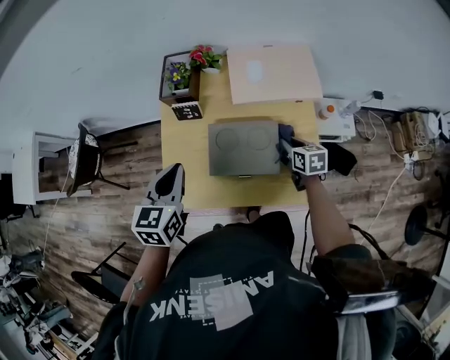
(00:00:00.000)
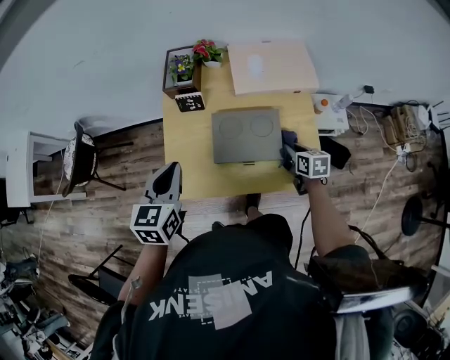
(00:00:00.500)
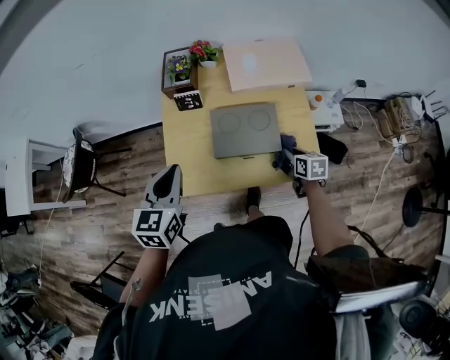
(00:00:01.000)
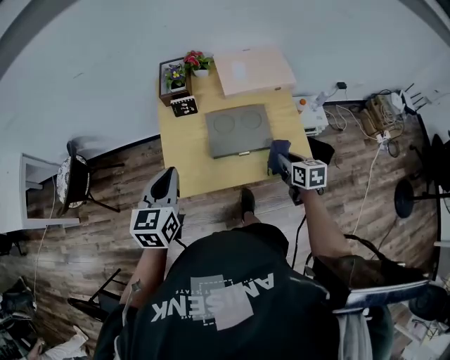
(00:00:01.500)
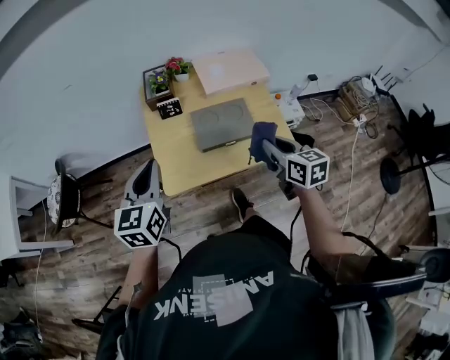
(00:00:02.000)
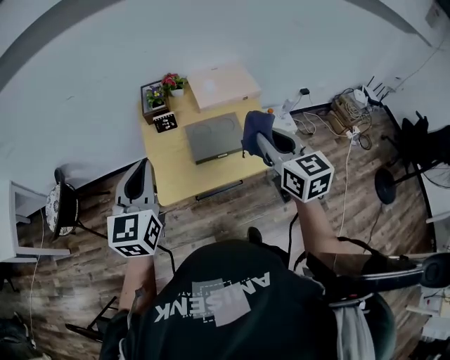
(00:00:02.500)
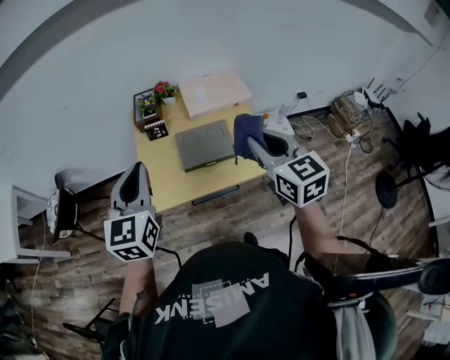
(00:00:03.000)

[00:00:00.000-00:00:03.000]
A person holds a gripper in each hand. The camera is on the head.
00:00:00.000 to 00:00:01.500: The left gripper goes some 10 cm backward and to the left, while the right gripper travels backward by some 15 cm.
00:00:01.500 to 00:00:03.000: The right gripper goes some 30 cm upward, and turns by about 30 degrees. Meanwhile the left gripper shifts some 15 cm upward.

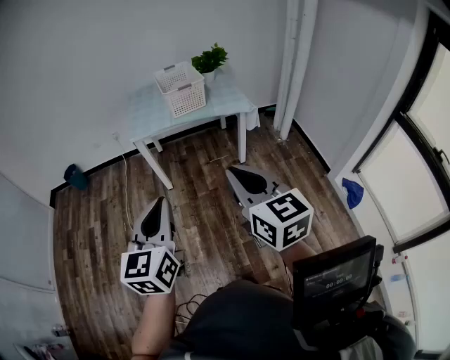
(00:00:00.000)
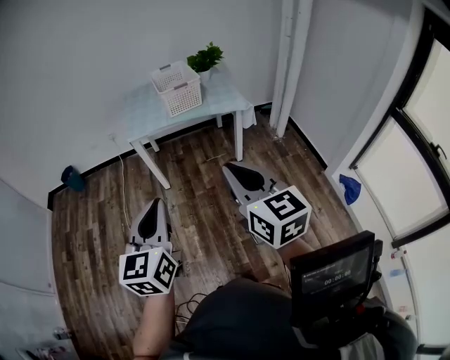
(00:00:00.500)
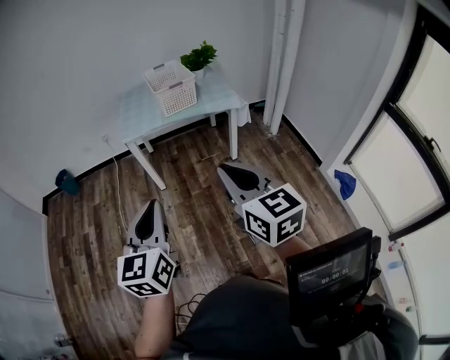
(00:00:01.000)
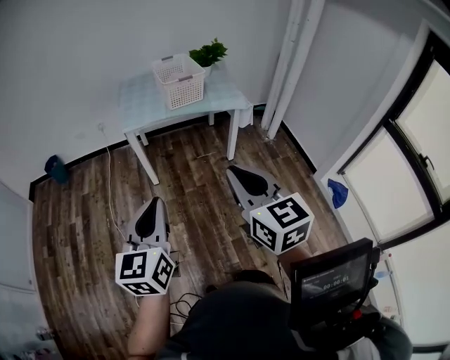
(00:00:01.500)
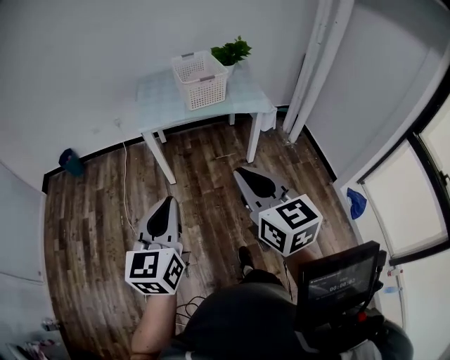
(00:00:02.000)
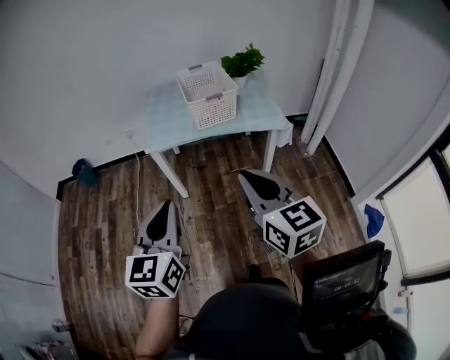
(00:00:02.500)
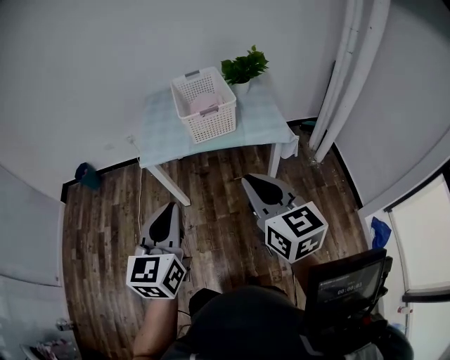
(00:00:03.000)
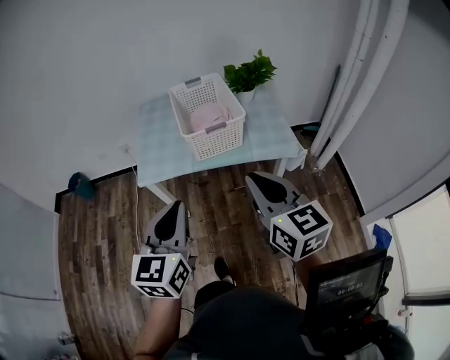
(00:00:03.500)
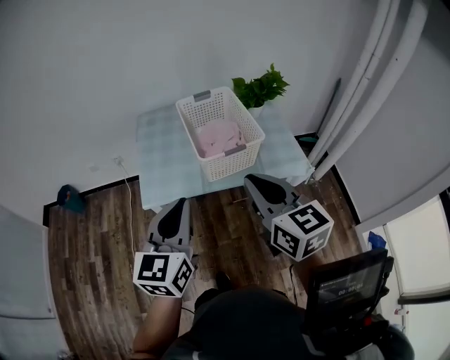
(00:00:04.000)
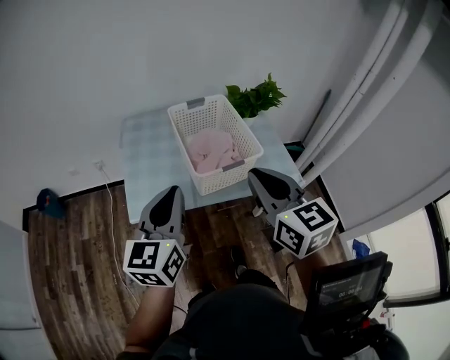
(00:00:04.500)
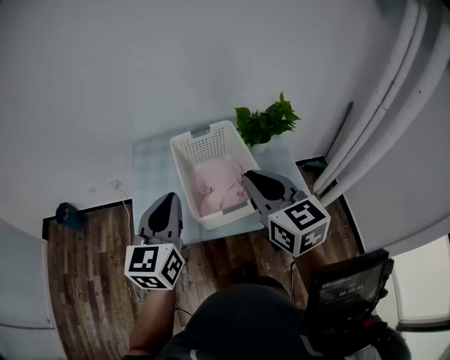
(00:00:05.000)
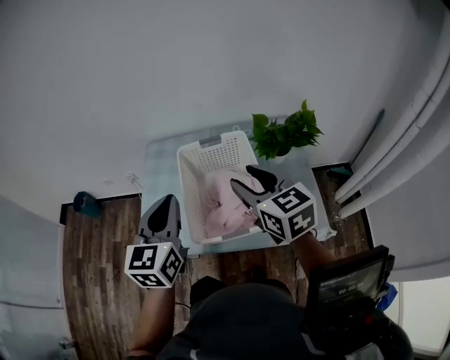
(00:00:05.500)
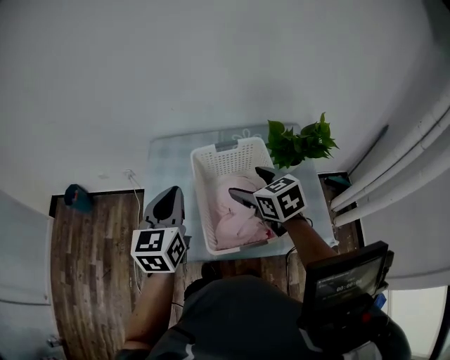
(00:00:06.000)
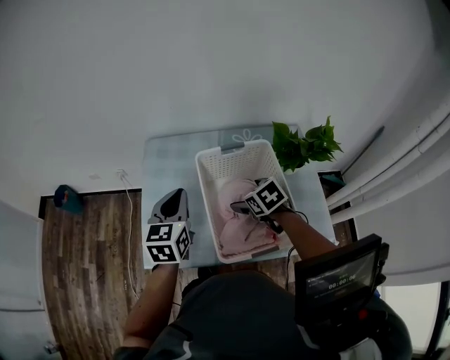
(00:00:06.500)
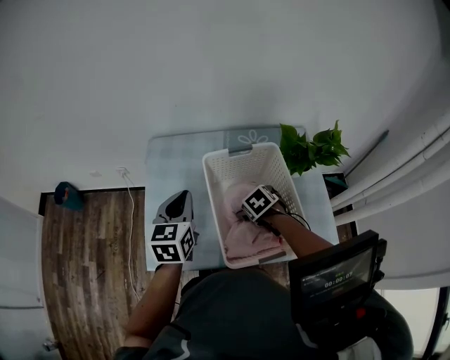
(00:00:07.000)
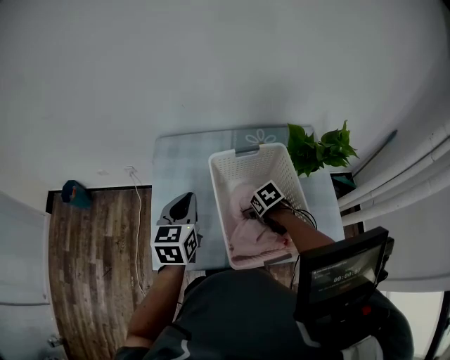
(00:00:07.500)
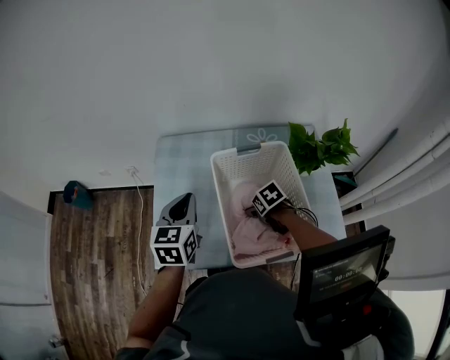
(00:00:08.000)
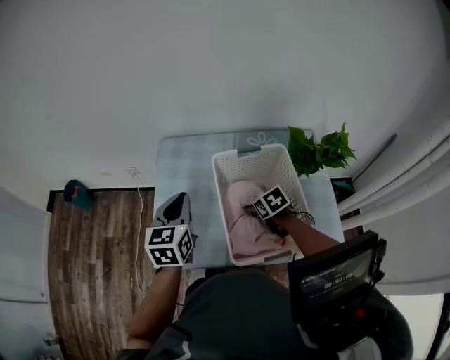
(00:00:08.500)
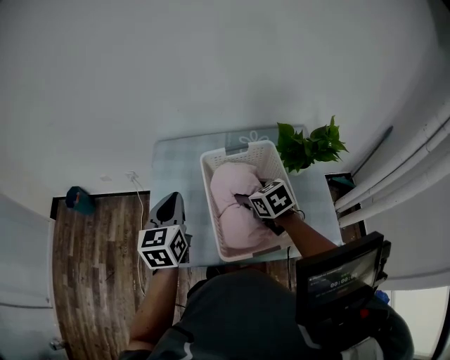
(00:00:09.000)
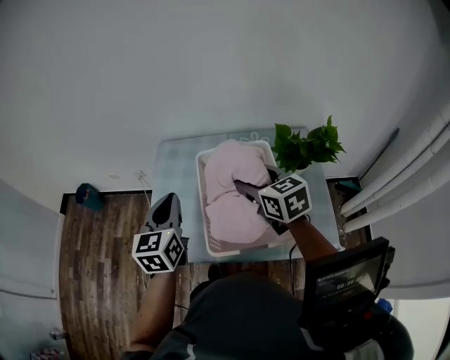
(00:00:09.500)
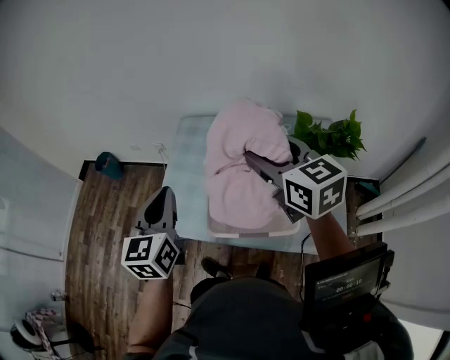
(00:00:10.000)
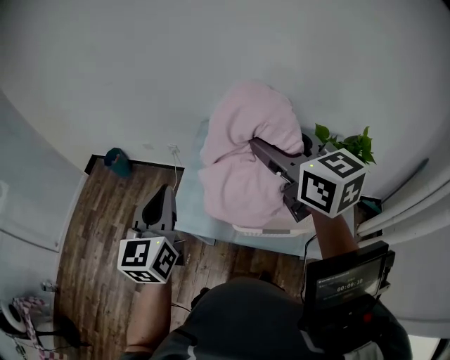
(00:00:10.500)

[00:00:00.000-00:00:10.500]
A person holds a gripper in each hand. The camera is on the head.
00:00:00.000 to 00:00:02.000: The two grippers go some 10 cm to the left and forward.
00:00:02.000 to 00:00:04.000: Both grippers are carried forward, about 50 cm.
00:00:04.000 to 00:00:06.500: The right gripper travels forward and downward by some 50 cm, points its fingers some 50 degrees further downward, and opens its fingers; the left gripper shifts approximately 40 cm forward.
00:00:06.500 to 00:00:08.500: The right gripper travels downward by approximately 5 cm, and closes.
00:00:08.500 to 00:00:10.500: The right gripper is displaced upward by some 40 cm, and points its fingers about 60 degrees further upward. Meanwhile the left gripper is displaced backward, upward and to the left by about 25 cm, and rotates approximately 20 degrees.

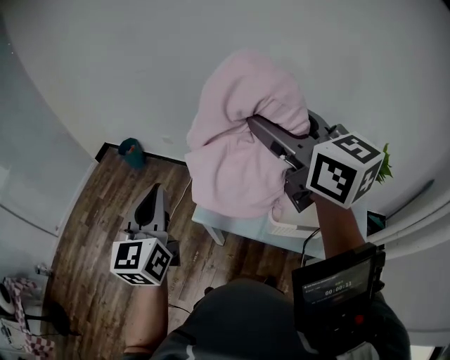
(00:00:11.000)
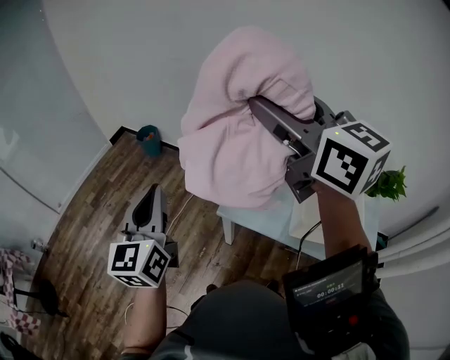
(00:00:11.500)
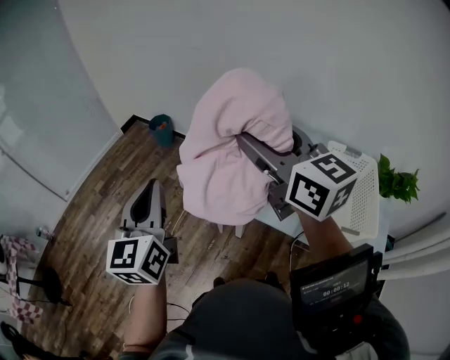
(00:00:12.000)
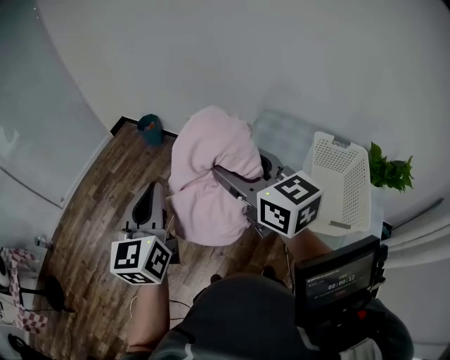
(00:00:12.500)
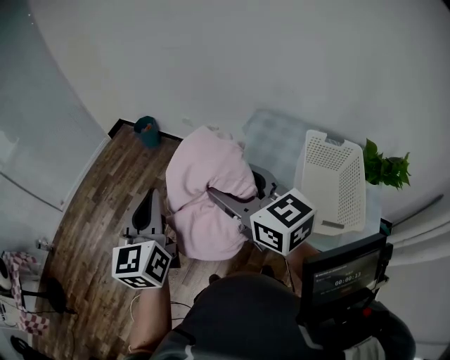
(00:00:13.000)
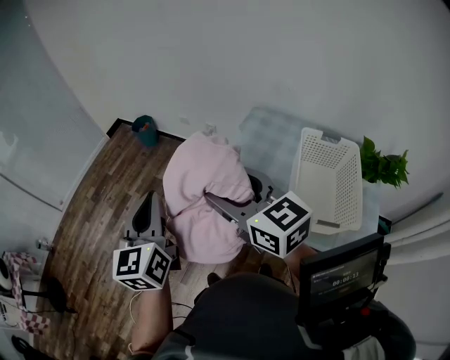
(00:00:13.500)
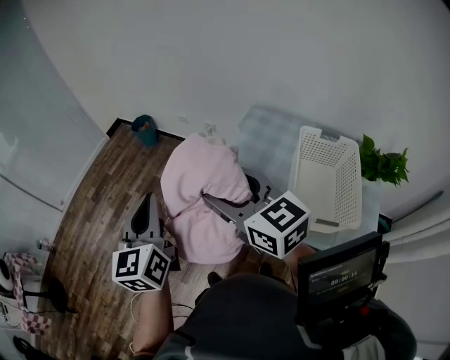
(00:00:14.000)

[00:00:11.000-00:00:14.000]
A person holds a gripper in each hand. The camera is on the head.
00:00:11.000 to 00:00:12.500: The right gripper goes approximately 25 cm to the left and downward. Meanwhile the left gripper travels to the left by approximately 15 cm.
00:00:12.500 to 00:00:14.000: The left gripper moves some 5 cm. The right gripper shifts by about 5 cm.

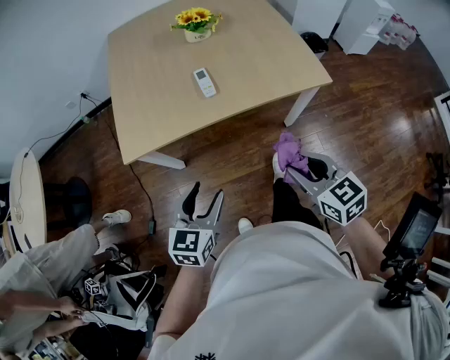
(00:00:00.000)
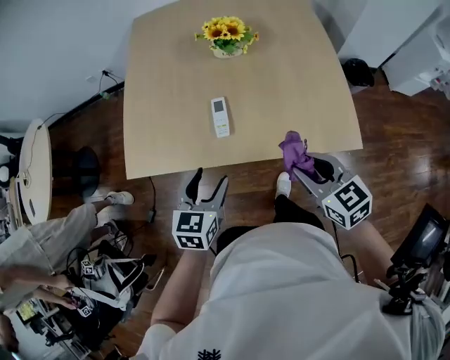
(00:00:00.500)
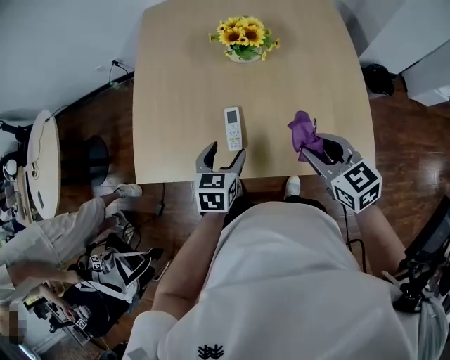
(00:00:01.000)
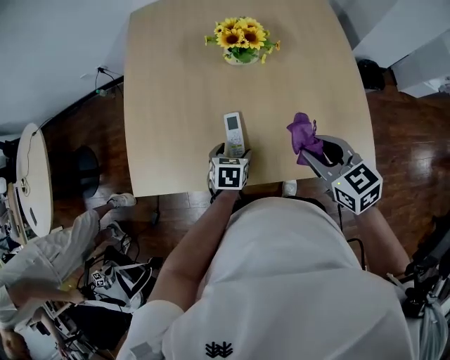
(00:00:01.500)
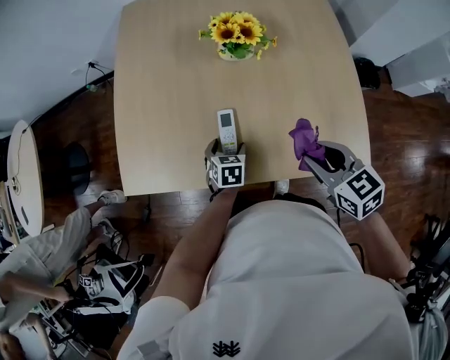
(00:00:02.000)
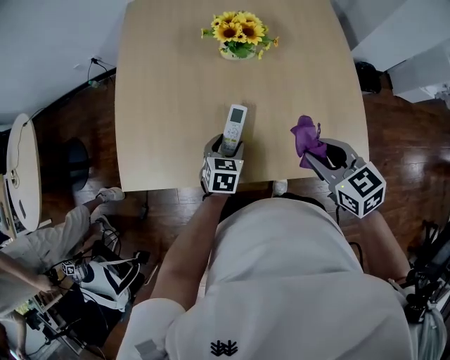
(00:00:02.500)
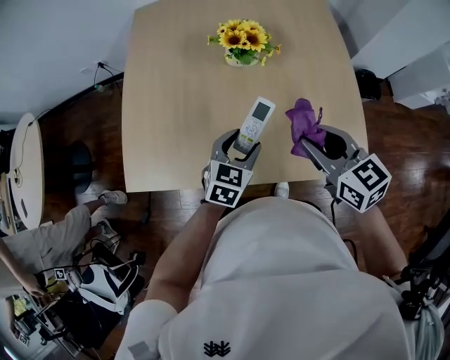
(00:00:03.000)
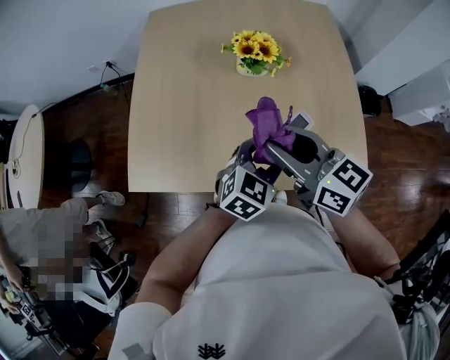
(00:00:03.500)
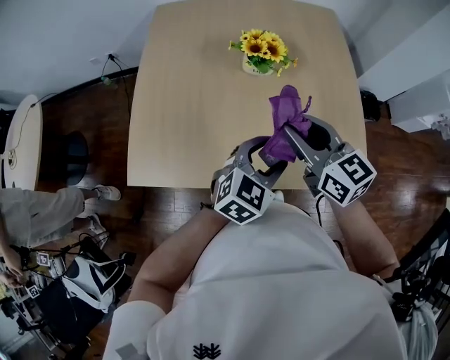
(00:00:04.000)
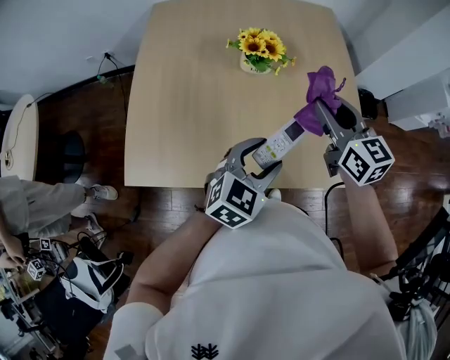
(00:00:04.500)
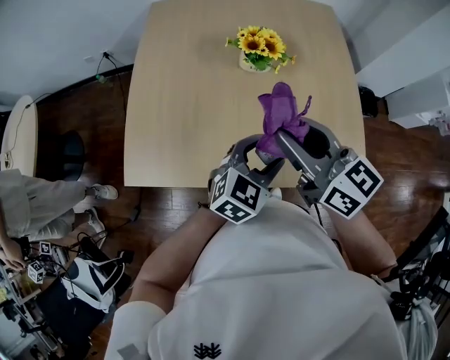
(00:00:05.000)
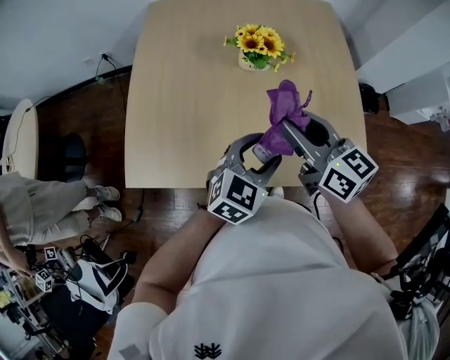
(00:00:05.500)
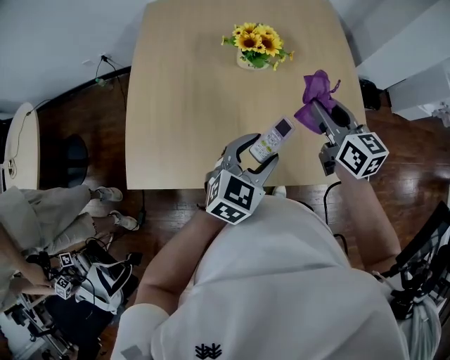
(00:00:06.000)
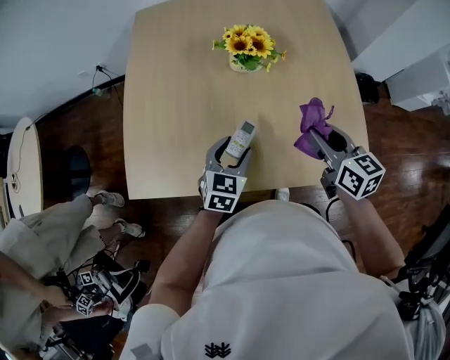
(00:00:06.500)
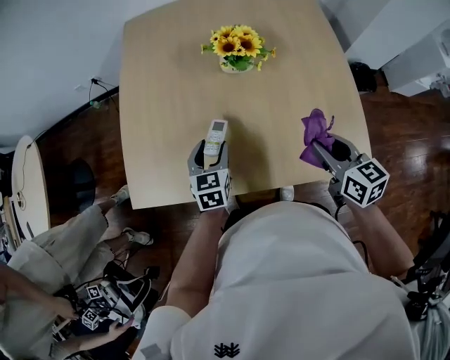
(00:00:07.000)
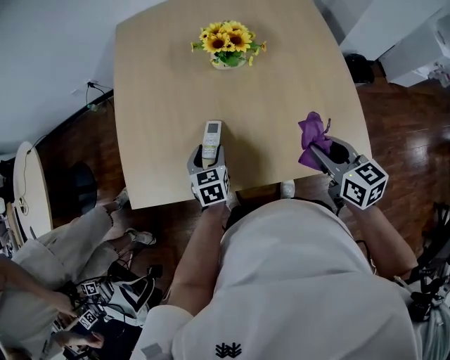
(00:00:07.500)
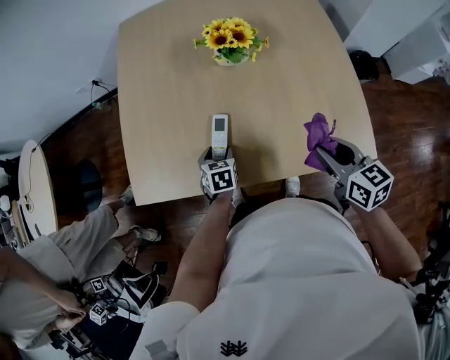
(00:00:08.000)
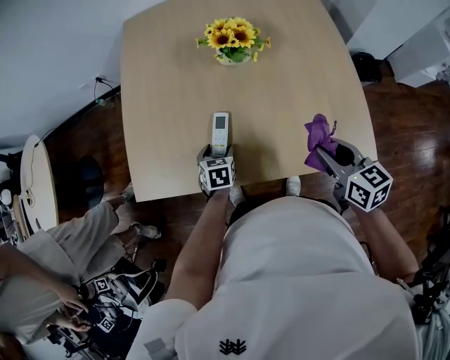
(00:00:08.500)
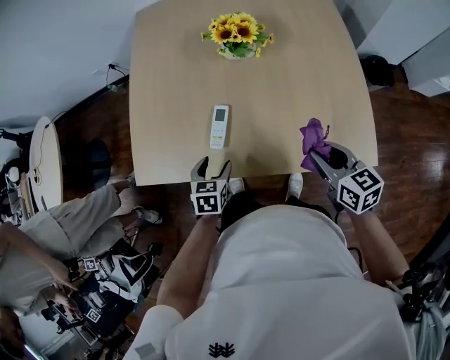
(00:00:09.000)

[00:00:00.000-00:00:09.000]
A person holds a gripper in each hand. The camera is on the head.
00:00:00.000 to 00:00:02.000: The right gripper moves forward, approximately 30 cm. The left gripper moves forward and downward, approximately 40 cm, and swivels some 30 degrees.
00:00:02.000 to 00:00:04.500: The right gripper moves forward and upward, about 20 cm, and turns by approximately 30 degrees, while the left gripper travels upward and to the right by approximately 25 cm, and swivels some 40 degrees.
00:00:04.500 to 00:00:07.000: The right gripper travels downward and backward by roughly 15 cm, and reaches about 10 cm to the left, then returns; the left gripper goes some 20 cm to the left, downward and forward, and rotates approximately 40 degrees.
00:00:07.000 to 00:00:09.000: The left gripper goes roughly 10 cm backward, while the right gripper shifts roughly 5 cm backward.
